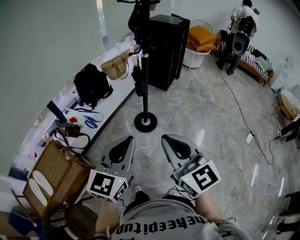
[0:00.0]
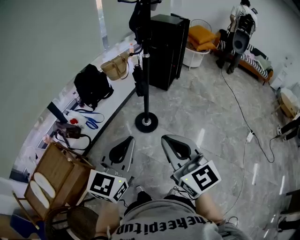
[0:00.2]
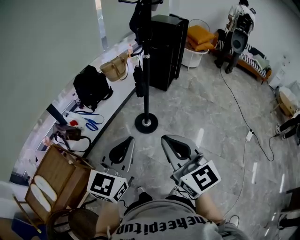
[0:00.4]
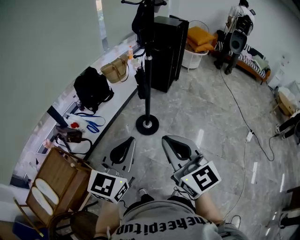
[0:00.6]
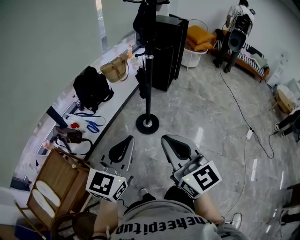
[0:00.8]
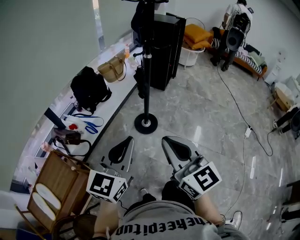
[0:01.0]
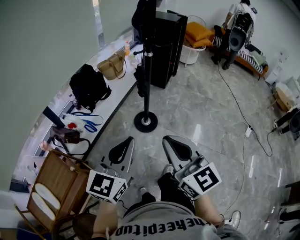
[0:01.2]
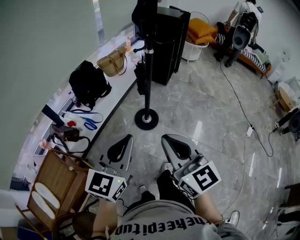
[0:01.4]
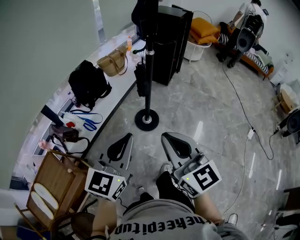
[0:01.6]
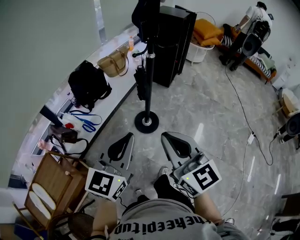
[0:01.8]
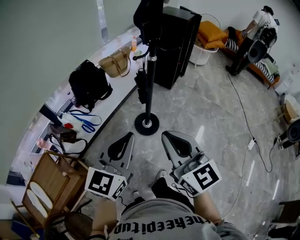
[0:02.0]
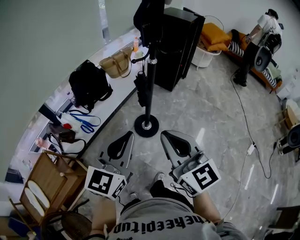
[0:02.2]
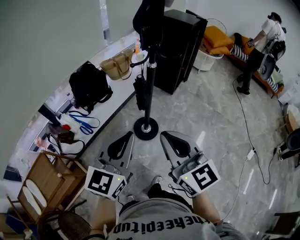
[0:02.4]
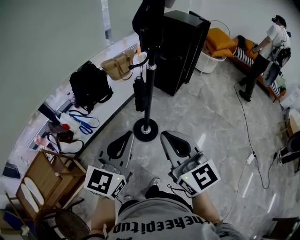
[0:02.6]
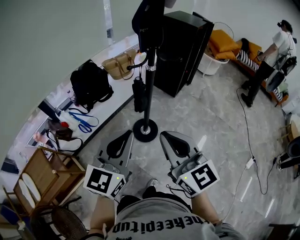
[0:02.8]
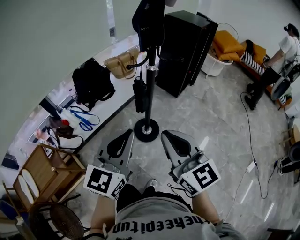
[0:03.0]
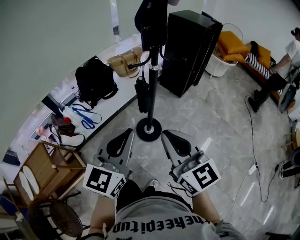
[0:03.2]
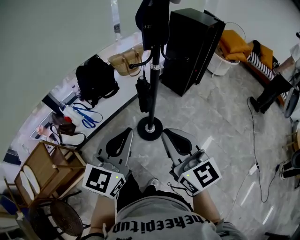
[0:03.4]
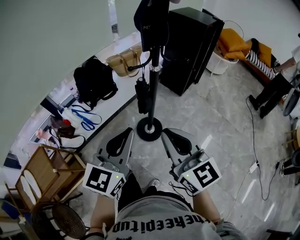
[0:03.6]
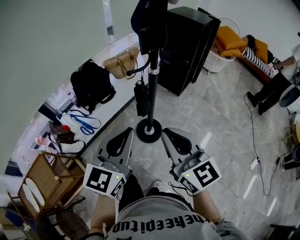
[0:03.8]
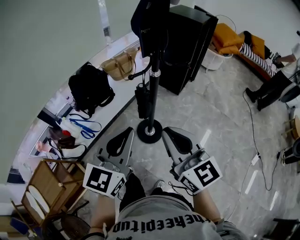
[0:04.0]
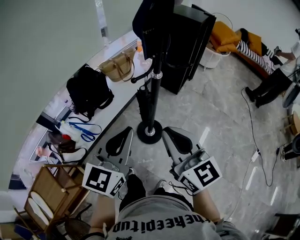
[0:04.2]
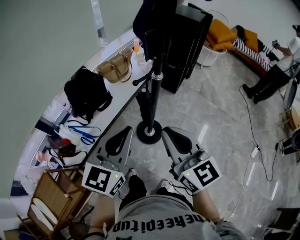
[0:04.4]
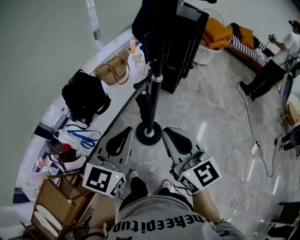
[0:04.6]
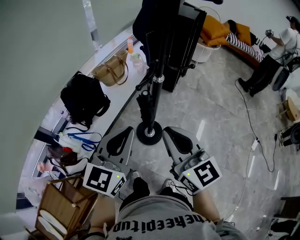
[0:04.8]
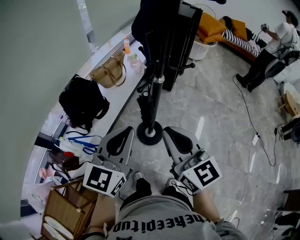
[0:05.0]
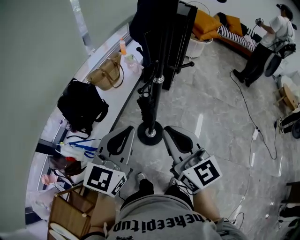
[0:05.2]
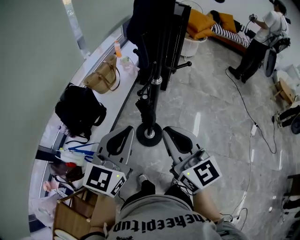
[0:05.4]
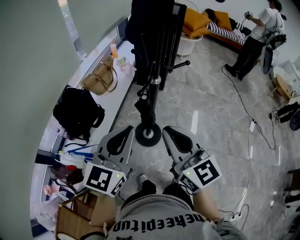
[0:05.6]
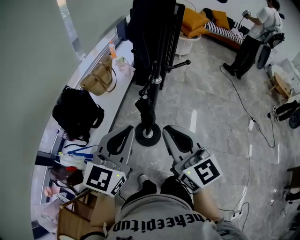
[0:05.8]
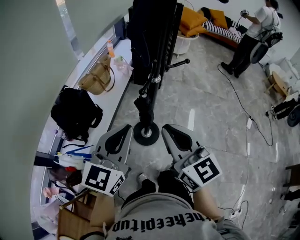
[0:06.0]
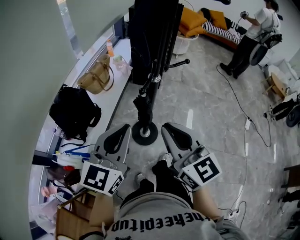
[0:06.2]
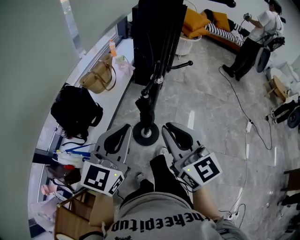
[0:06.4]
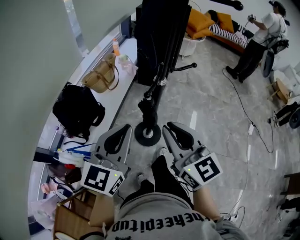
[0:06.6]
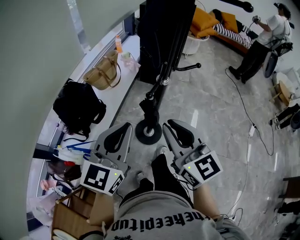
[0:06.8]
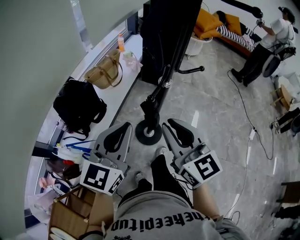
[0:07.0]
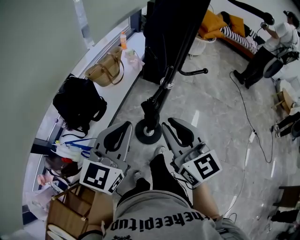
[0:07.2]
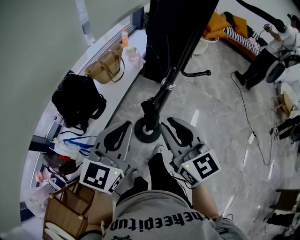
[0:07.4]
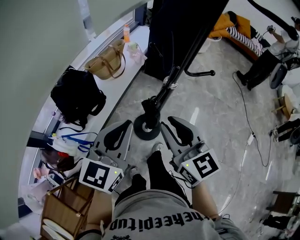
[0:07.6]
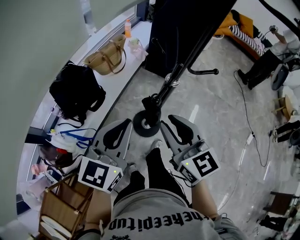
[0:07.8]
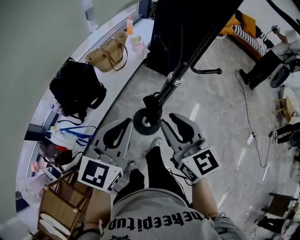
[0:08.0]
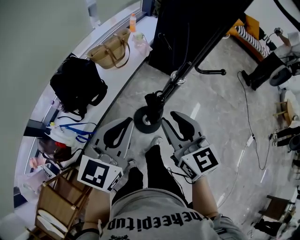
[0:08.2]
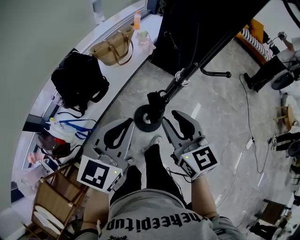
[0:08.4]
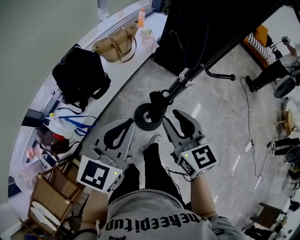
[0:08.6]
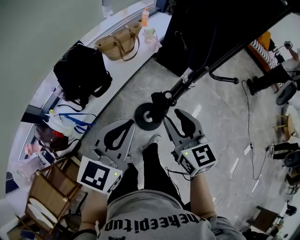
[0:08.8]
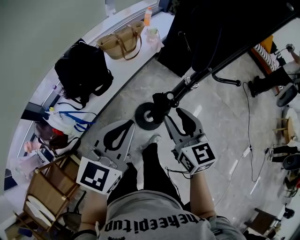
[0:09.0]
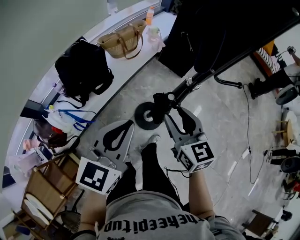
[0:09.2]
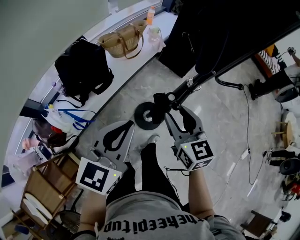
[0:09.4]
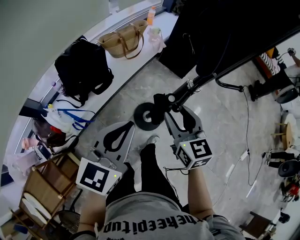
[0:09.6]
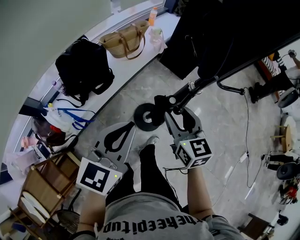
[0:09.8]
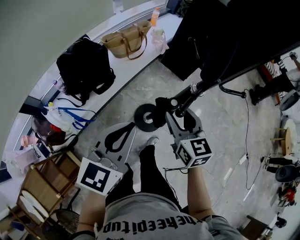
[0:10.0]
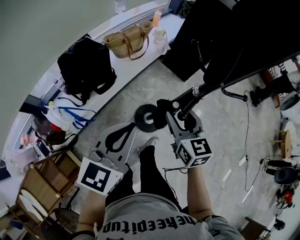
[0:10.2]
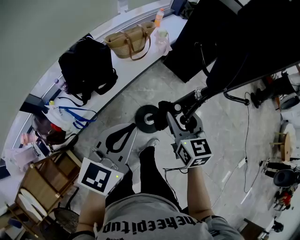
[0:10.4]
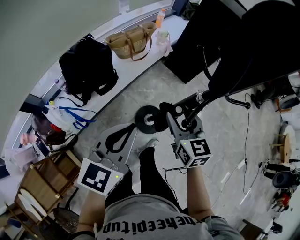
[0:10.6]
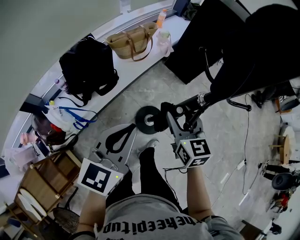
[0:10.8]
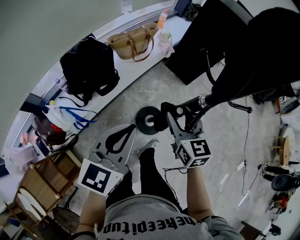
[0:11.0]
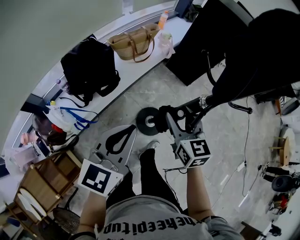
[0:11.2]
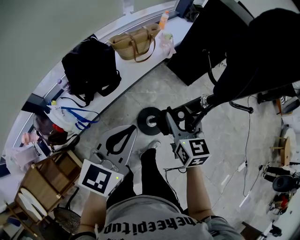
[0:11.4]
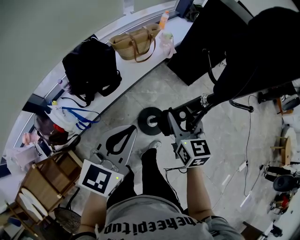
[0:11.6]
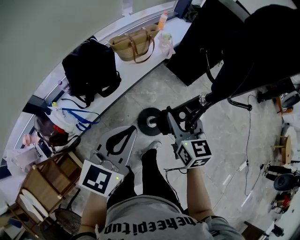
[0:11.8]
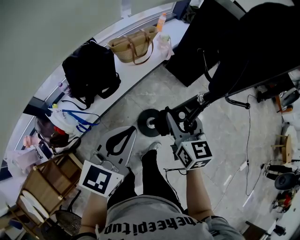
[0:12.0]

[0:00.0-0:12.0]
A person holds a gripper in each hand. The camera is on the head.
0:00.0 to 0:01.6: Both grippers move forward, roughly 10 cm.
0:01.6 to 0:03.0: The two grippers go roughly 15 cm forward and to the right.
0:03.0 to 0:04.4: Both grippers move forward and to the left, about 10 cm.
0:04.4 to 0:06.0: The left gripper heads forward and to the left, covering some 10 cm. The right gripper is displaced to the left by about 5 cm.
0:06.0 to 0:07.6: The right gripper shifts about 10 cm forward and downward. The left gripper is displaced forward by about 5 cm.
0:07.6 to 0:09.0: The right gripper heads downward, covering approximately 10 cm.
0:09.0 to 0:10.4: The right gripper is displaced forward by some 5 cm.
0:10.4 to 0:12.0: There are only small adjustments of the grippers.

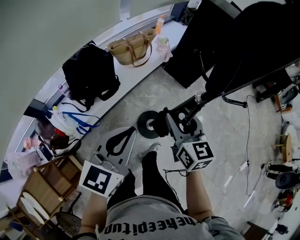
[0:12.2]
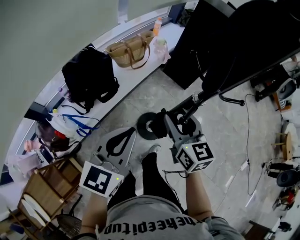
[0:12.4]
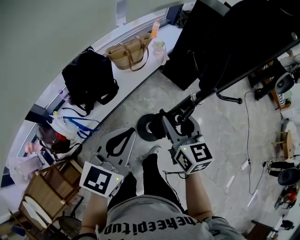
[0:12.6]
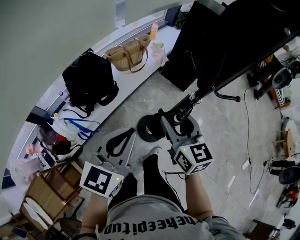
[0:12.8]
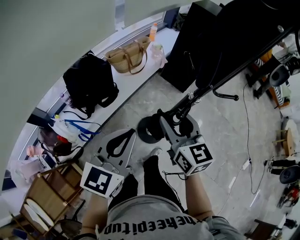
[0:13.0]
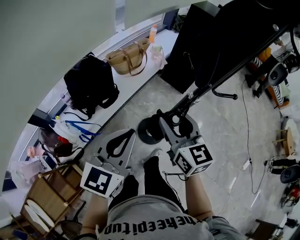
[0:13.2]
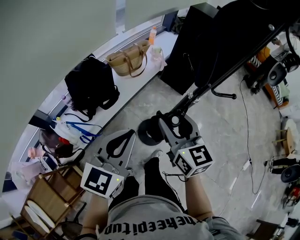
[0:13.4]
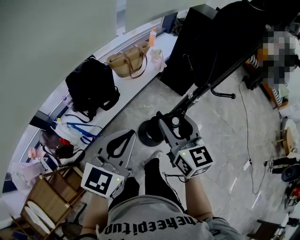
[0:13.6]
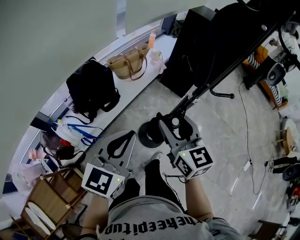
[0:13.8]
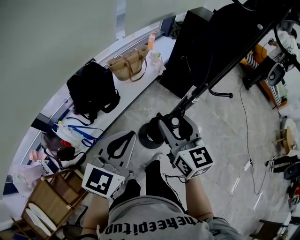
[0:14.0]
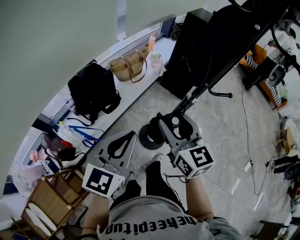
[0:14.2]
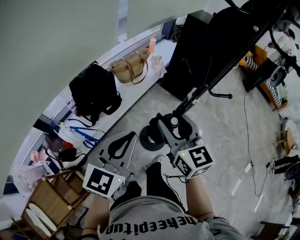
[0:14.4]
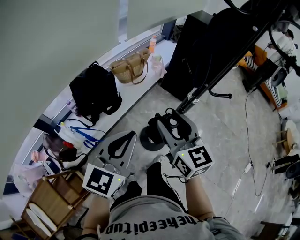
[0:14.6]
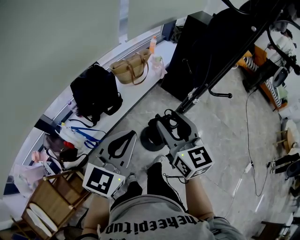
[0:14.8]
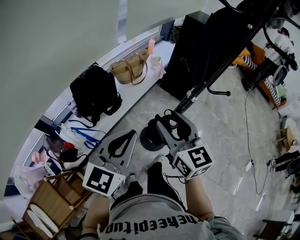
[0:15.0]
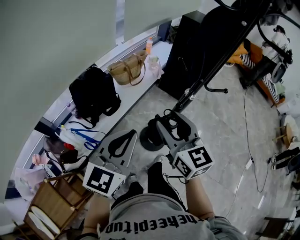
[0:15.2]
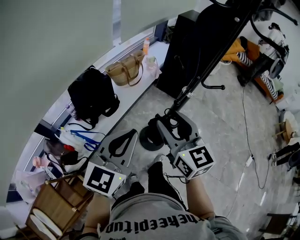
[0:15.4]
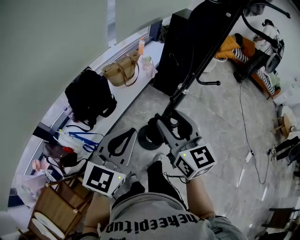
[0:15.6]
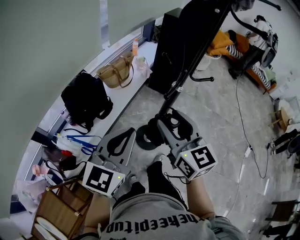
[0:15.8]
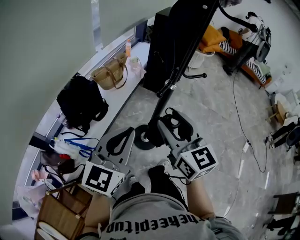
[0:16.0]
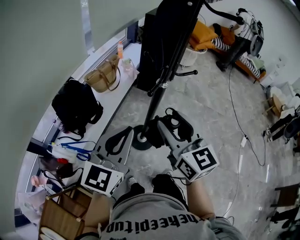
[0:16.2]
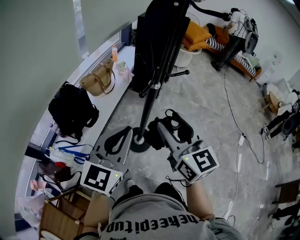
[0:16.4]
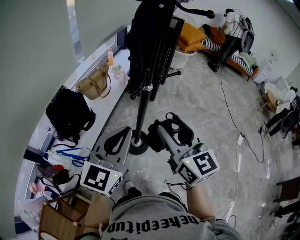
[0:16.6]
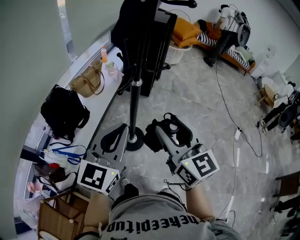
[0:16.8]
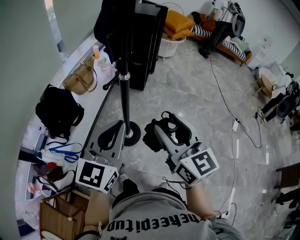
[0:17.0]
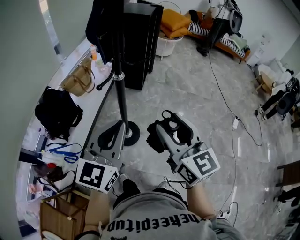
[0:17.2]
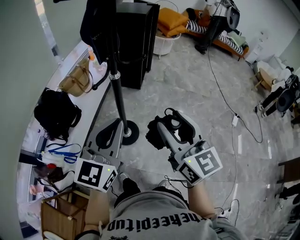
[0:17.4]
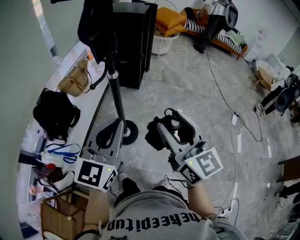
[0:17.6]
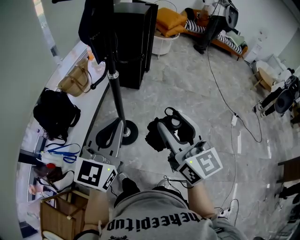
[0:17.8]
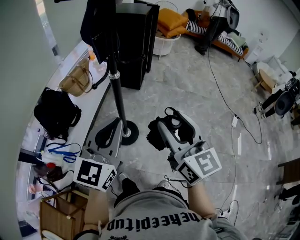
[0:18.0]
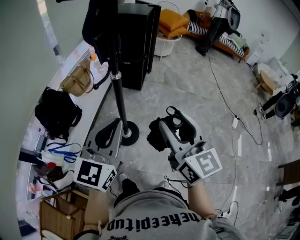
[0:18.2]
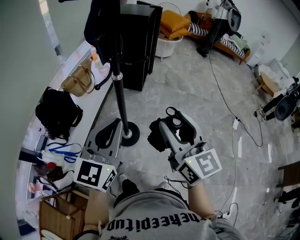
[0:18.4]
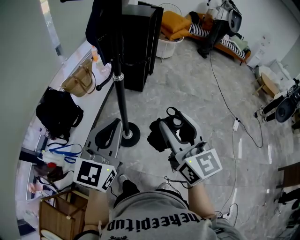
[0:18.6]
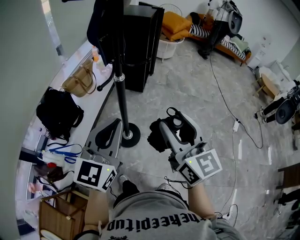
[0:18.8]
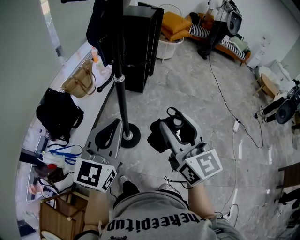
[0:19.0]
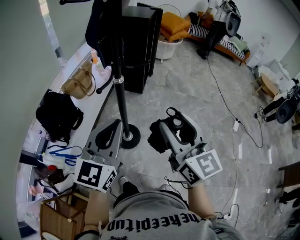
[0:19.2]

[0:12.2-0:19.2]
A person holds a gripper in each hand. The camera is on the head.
0:12.2 to 0:13.6: The right gripper is displaced upward and backward by about 10 cm.
0:13.6 to 0:15.0: There are only small adjustments of the grippers.
0:15.0 to 0:16.4: The left gripper moves to the right, some 5 cm; the right gripper shifts roughly 15 cm to the right, backward and upward.
0:16.4 to 0:17.8: The two grippers go approximately 15 cm to the right.
0:17.8 to 0:19.2: There are only small adjustments of the grippers.

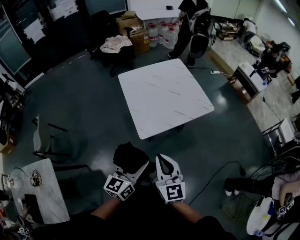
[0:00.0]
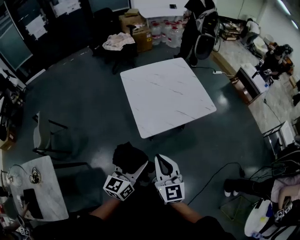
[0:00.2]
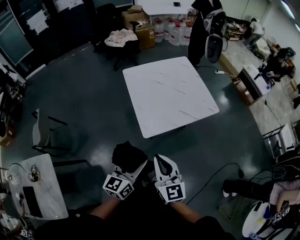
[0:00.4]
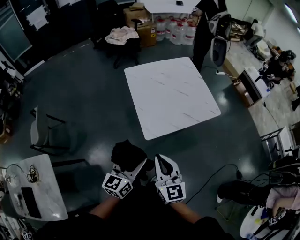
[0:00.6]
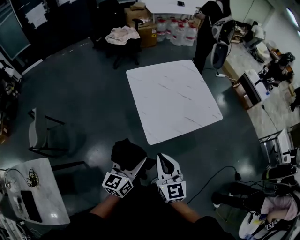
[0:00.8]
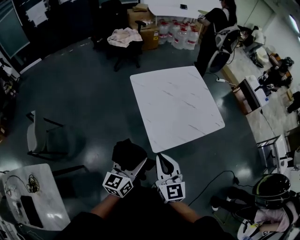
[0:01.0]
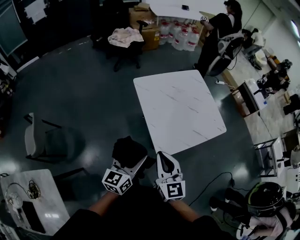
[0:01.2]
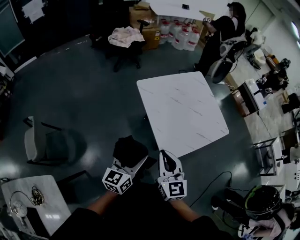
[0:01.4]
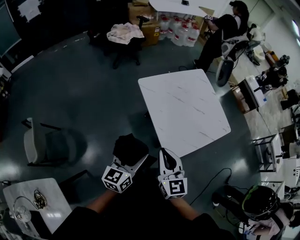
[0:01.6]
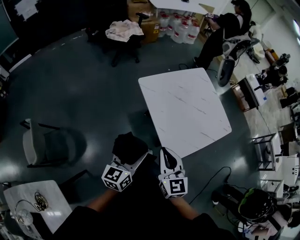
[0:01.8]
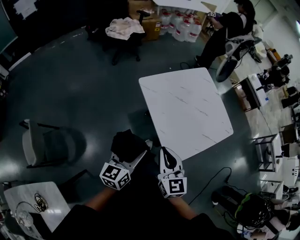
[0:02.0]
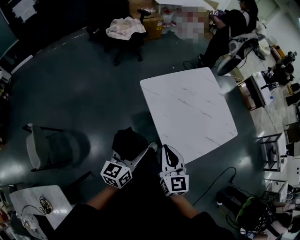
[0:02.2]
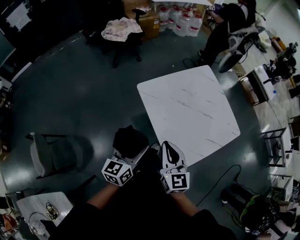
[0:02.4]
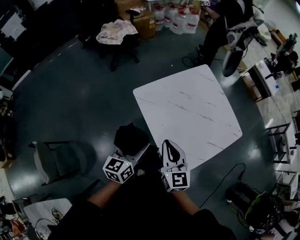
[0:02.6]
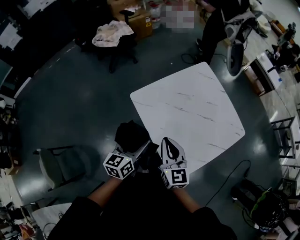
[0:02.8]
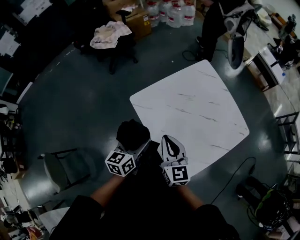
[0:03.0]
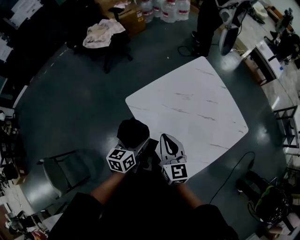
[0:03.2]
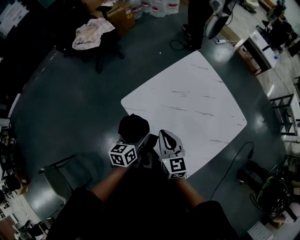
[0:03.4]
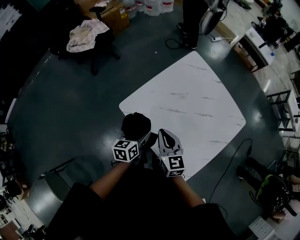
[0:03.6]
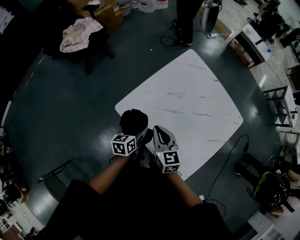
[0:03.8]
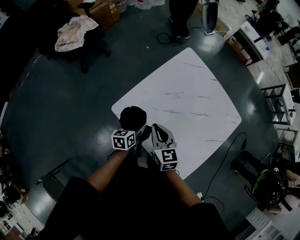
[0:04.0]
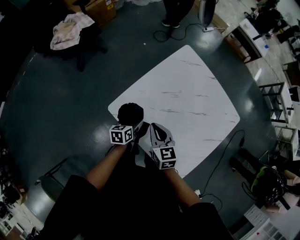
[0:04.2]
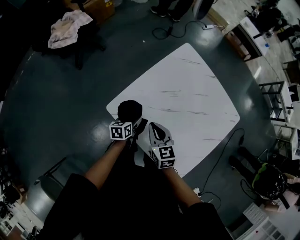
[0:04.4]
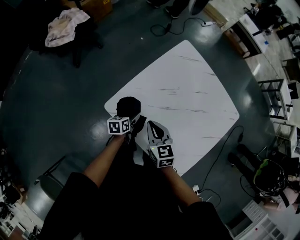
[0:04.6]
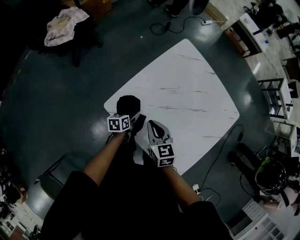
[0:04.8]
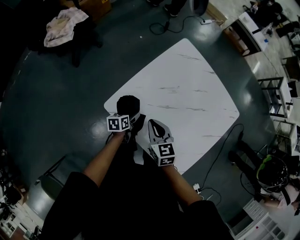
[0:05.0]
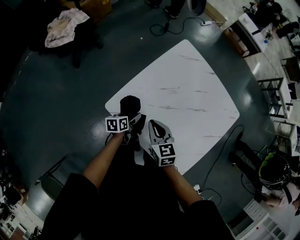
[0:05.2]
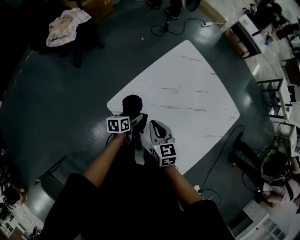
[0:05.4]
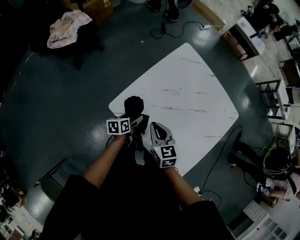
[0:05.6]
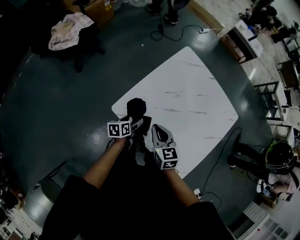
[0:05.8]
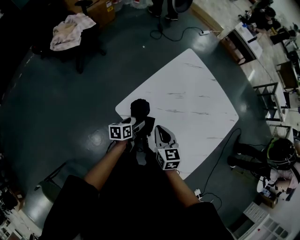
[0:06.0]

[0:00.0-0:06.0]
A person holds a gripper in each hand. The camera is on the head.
0:00.0 to 0:01.6: The grippers both shift to the left and forward by approximately 35 cm.
0:01.6 to 0:03.0: The grippers both shift forward by some 30 cm.
0:03.0 to 0:04.4: The right gripper is displaced forward and downward by approximately 20 cm, and rotates approximately 20 degrees, while the left gripper is displaced downward and forward by about 30 cm, and rotates approximately 30 degrees.
0:04.4 to 0:06.0: The grippers make only small movements.
